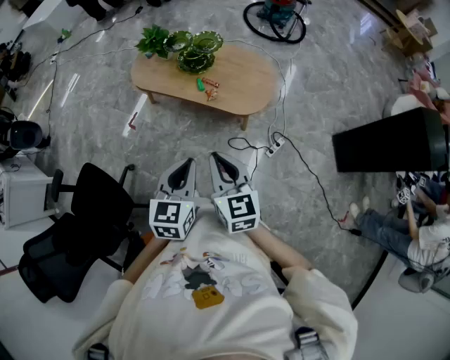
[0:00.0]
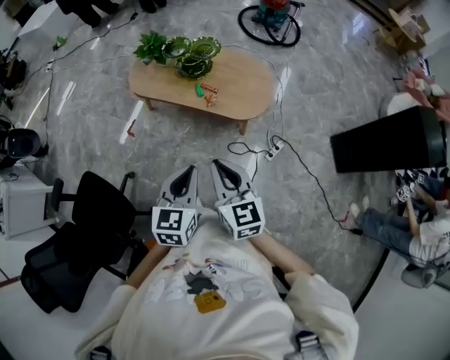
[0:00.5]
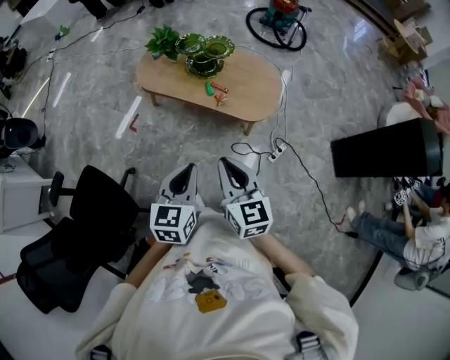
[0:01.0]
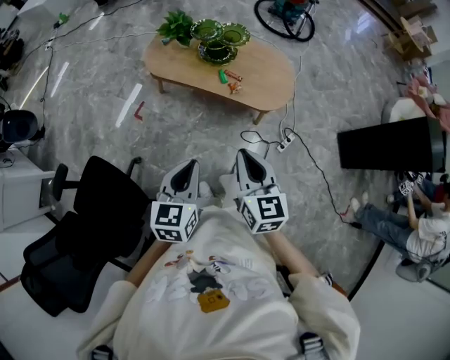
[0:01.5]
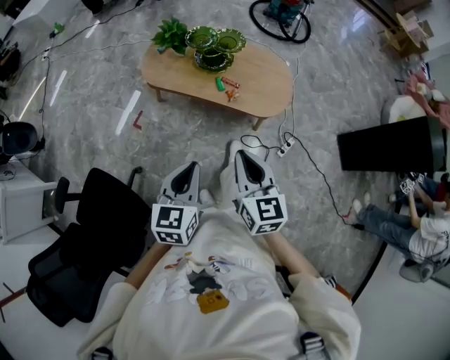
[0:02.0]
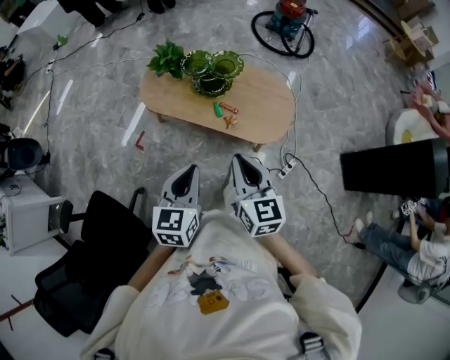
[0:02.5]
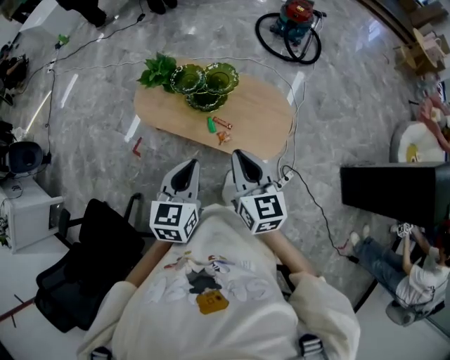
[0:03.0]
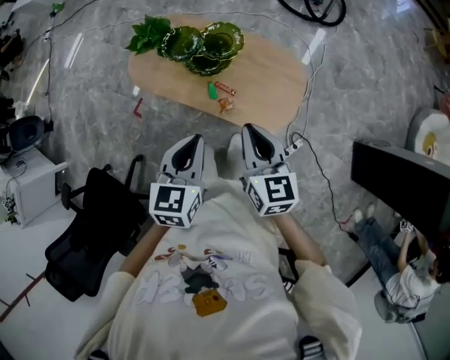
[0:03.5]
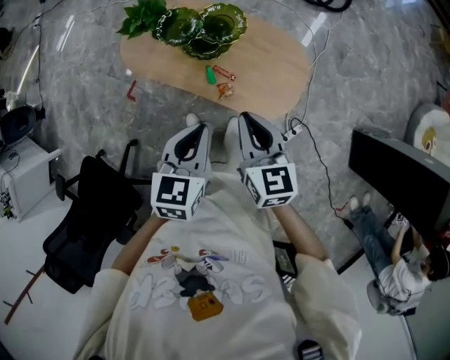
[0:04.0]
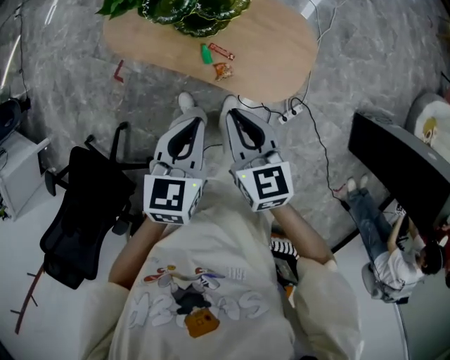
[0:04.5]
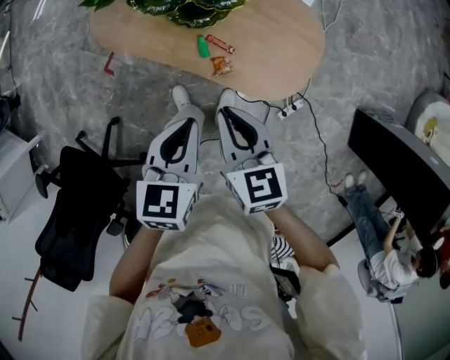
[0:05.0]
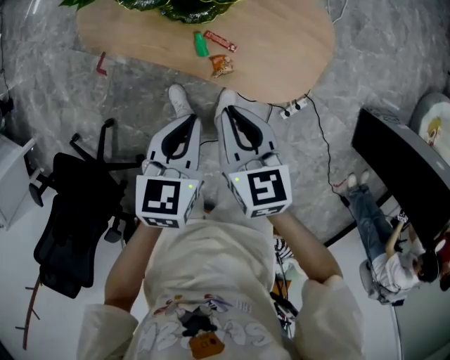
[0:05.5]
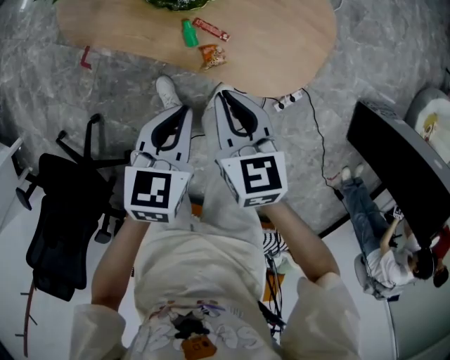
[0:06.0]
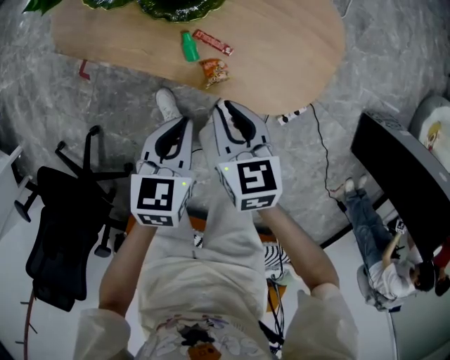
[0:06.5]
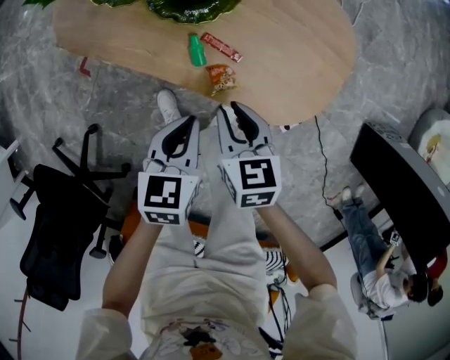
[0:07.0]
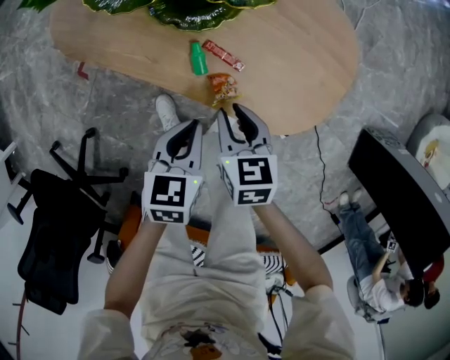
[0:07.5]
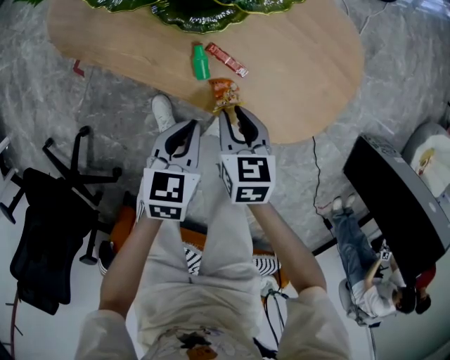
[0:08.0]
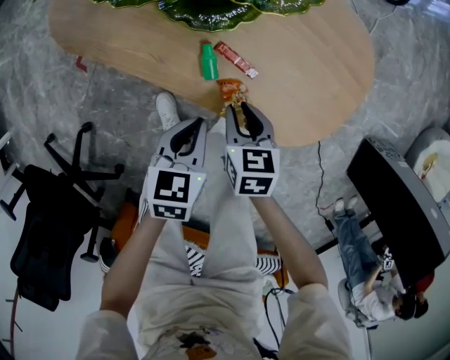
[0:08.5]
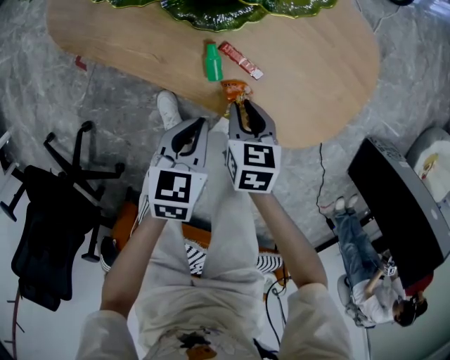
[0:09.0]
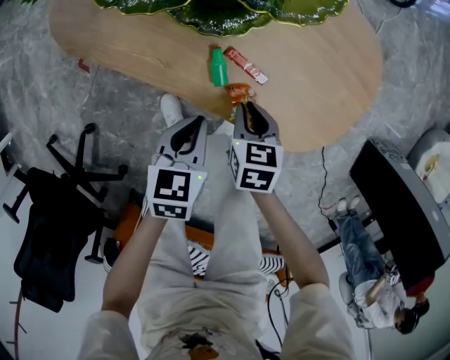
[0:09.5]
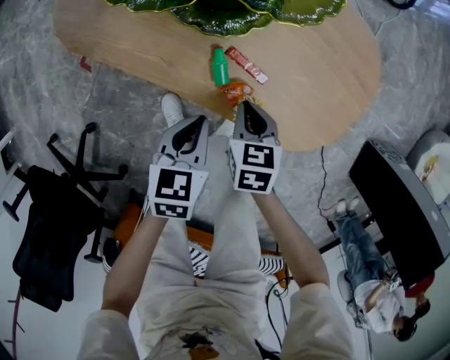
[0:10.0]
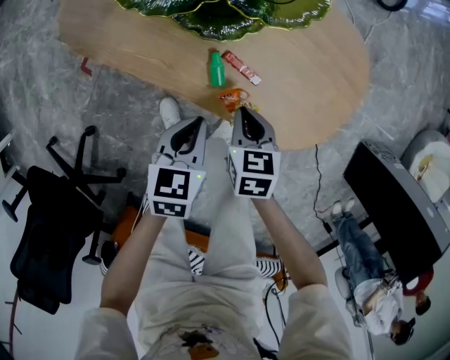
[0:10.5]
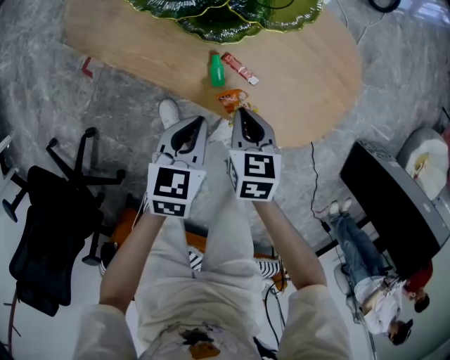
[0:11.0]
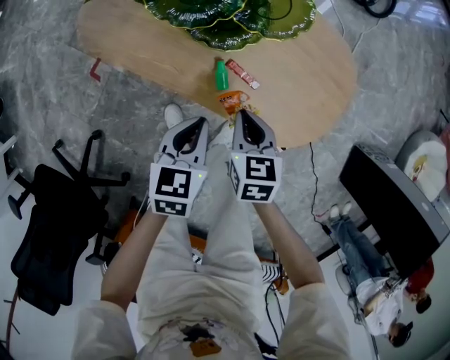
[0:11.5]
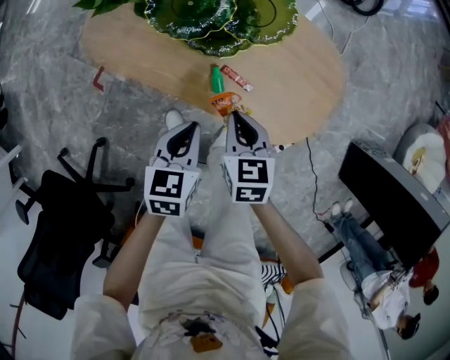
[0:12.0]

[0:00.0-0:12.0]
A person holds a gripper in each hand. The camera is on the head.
0:00.0 to 0:02.0: The grippers both shift to the left by approximately 15 cm.
0:02.0 to 0:04.0: The grippers both shift forward and to the right by some 40 cm.
0:04.0 to 0:06.0: Both grippers move downward, roughly 25 cm.
0:06.0 to 0:08.0: Both grippers travel together downward, about 20 cm.
0:08.0 to 0:10.0: The right gripper ends up about 5 cm from where it was.
0:10.0 to 0:12.0: Both grippers move upward, about 15 cm.

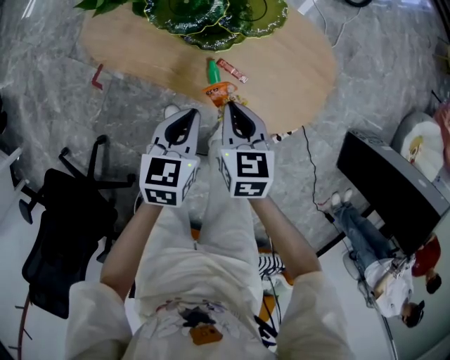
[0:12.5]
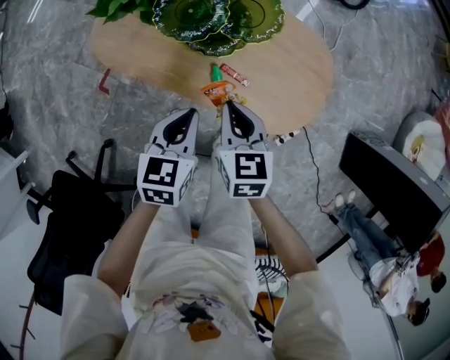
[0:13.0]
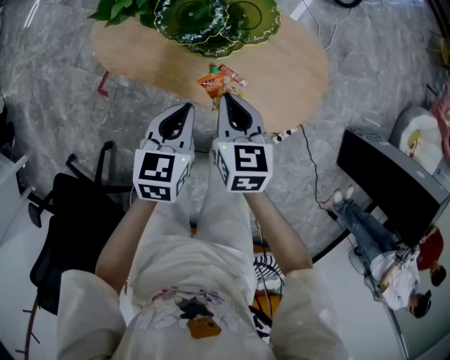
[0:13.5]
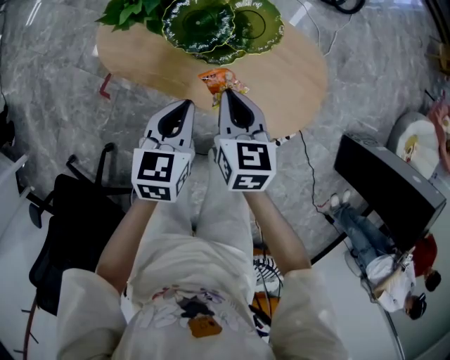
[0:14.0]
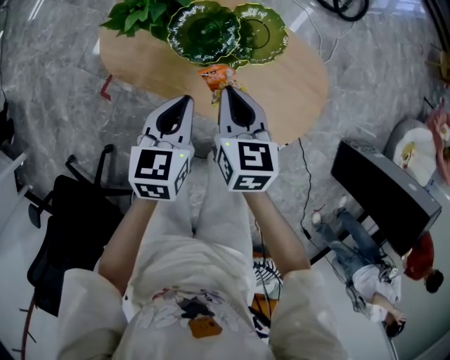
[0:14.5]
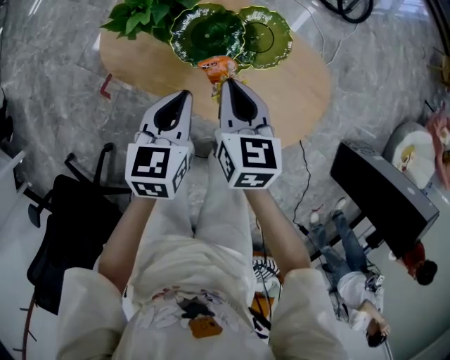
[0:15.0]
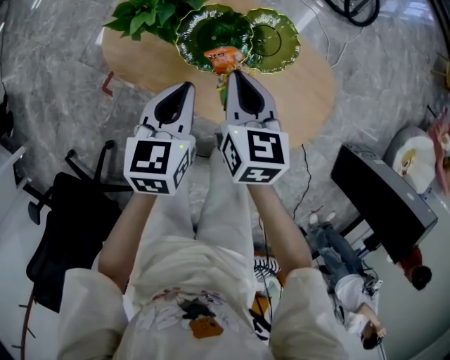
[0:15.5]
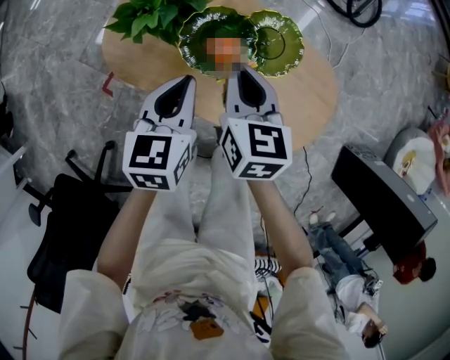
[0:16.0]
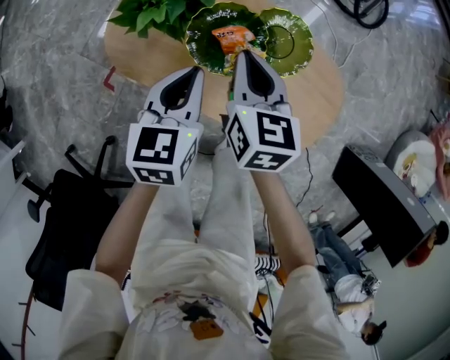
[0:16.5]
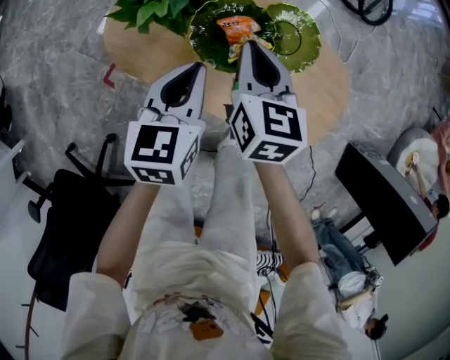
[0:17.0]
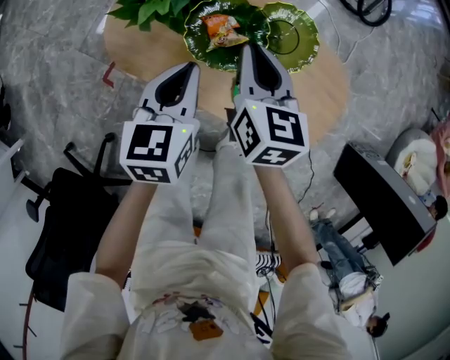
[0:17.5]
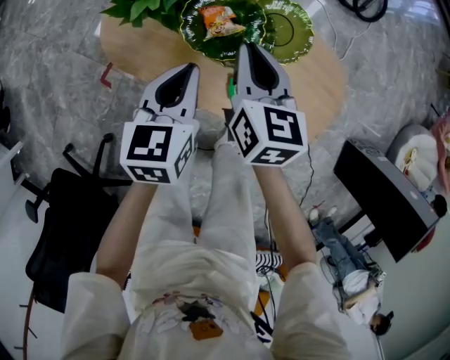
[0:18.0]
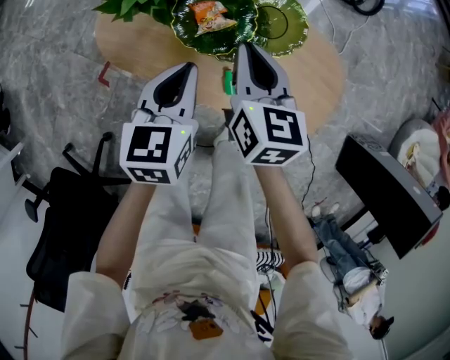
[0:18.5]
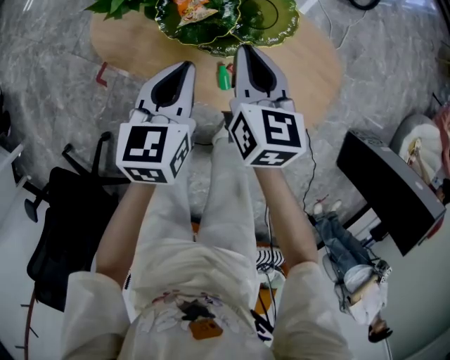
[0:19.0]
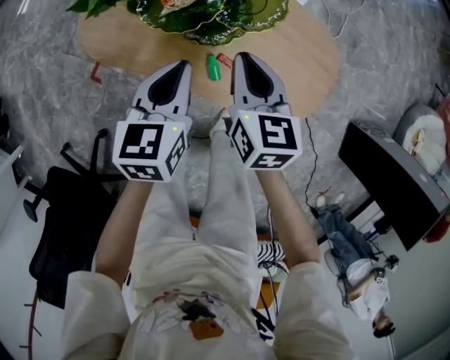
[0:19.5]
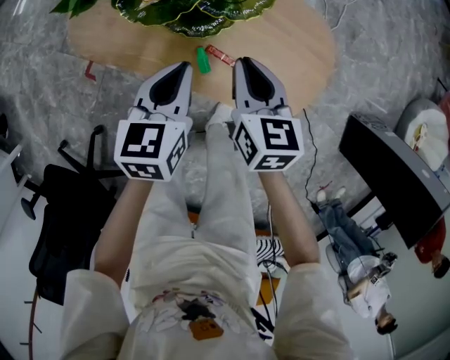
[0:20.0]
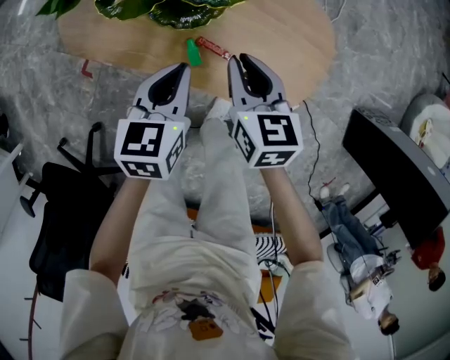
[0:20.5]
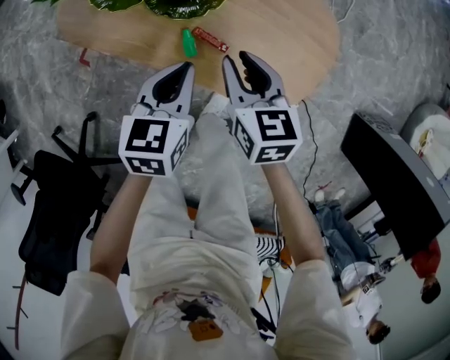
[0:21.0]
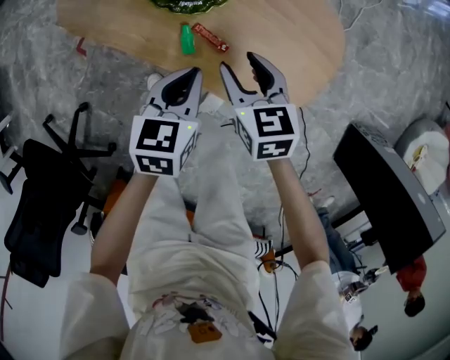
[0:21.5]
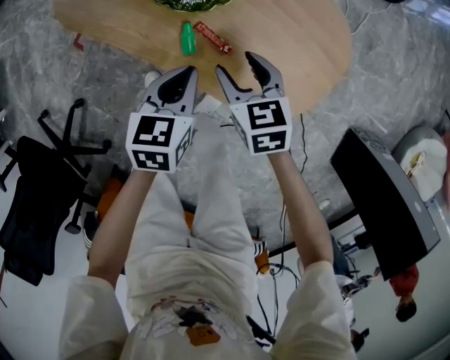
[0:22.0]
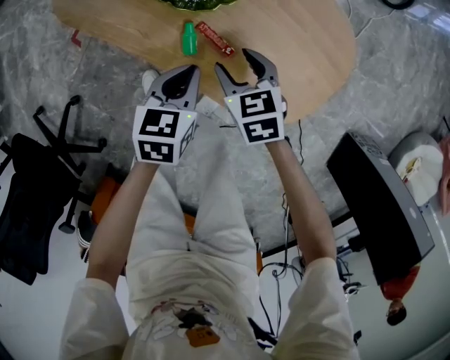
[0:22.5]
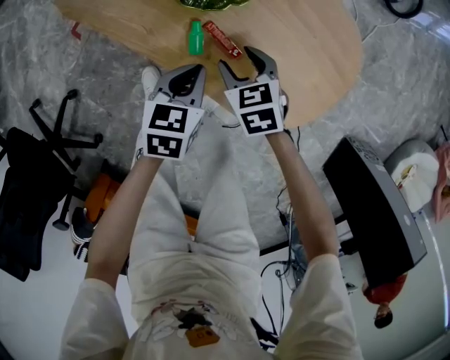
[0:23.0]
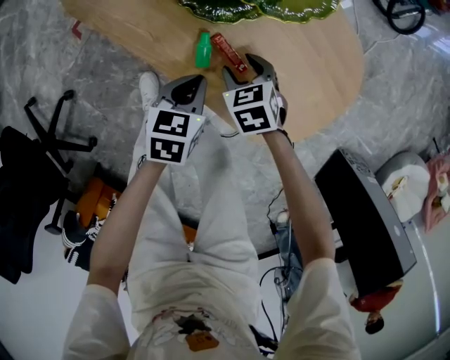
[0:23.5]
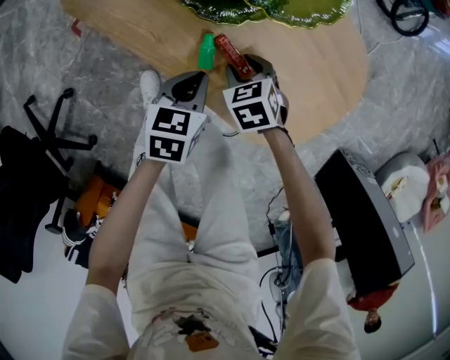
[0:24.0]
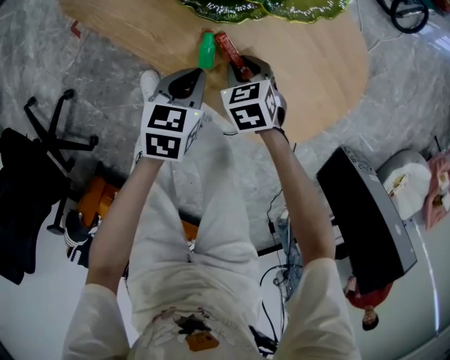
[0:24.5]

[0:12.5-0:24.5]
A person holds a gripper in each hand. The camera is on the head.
0:12.5 to 0:14.5: The left gripper shifts approximately 15 cm forward, upward and to the left. The right gripper moves upward, forward and to the left, approximately 15 cm.
0:14.5 to 0:16.5: The two grippers go about 10 cm forward.
0:16.5 to 0:18.5: The grippers stay close to where they were, moving slightly.
0:18.5 to 0:20.5: The right gripper shifts approximately 20 cm to the right, backward and downward; the left gripper goes some 15 cm to the right and backward.
0:20.5 to 0:22.5: Both grippers travel together downward, some 15 cm. The right gripper turns by some 30 degrees, and opens up.
0:22.5 to 0:24.5: The right gripper shifts approximately 10 cm downward, and closes, while the left gripper goes approximately 5 cm downward.

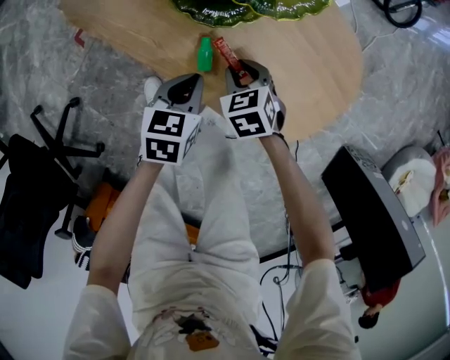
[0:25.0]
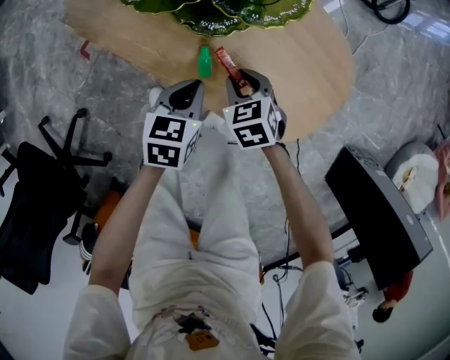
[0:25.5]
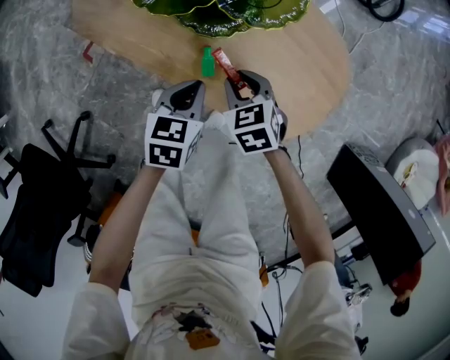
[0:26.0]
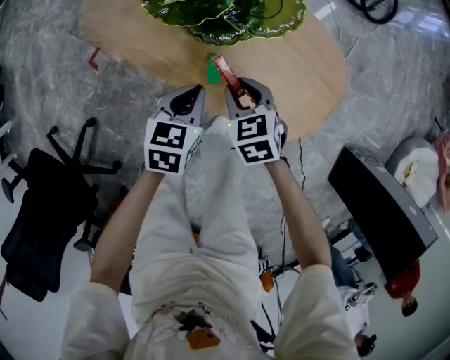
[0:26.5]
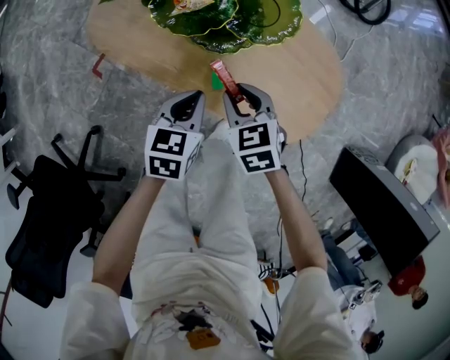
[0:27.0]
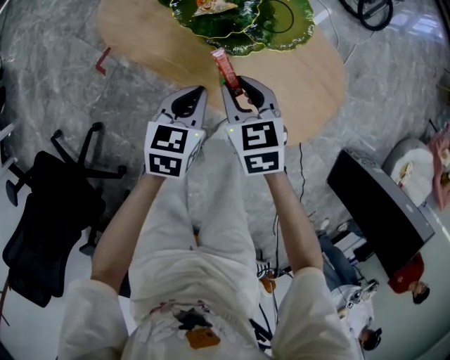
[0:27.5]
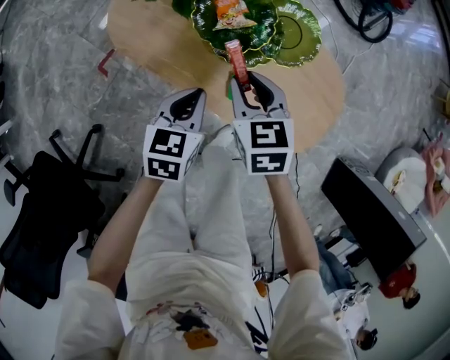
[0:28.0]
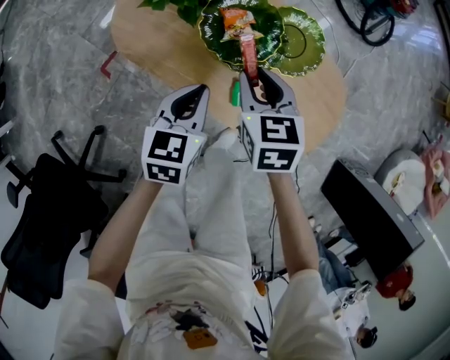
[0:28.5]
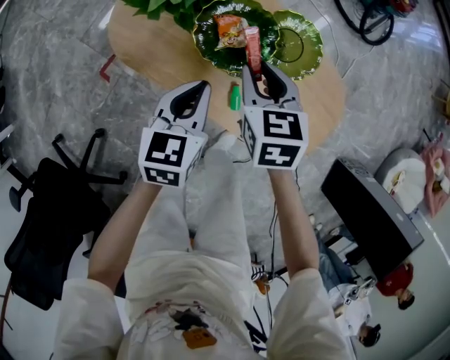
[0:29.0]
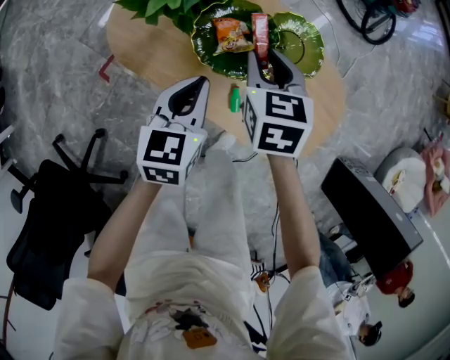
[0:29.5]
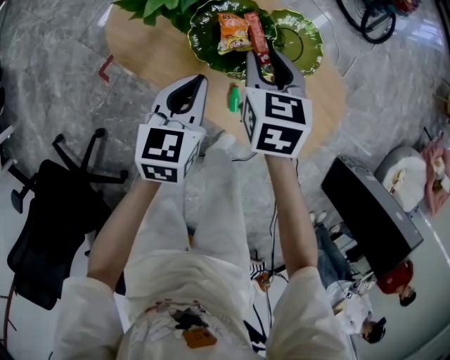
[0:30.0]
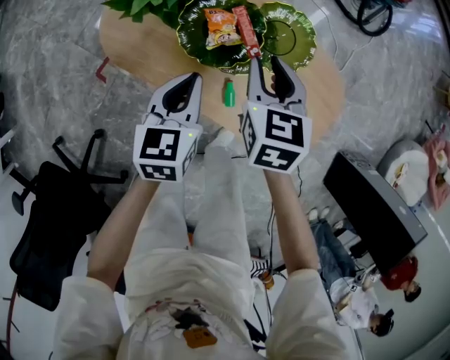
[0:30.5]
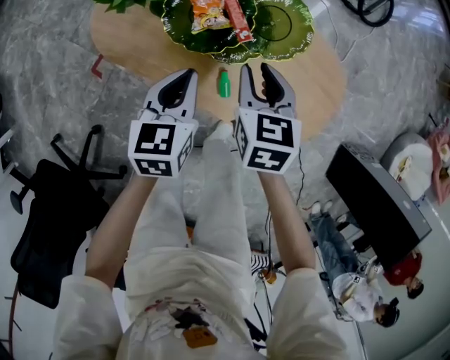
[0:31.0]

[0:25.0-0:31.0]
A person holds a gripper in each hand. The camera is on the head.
0:25.0 to 0:27.0: The two grippers go approximately 15 cm upward.
0:27.0 to 0:29.0: The right gripper travels forward, upward and to the left by approximately 20 cm; the left gripper travels forward, to the left and upward by about 15 cm.
0:29.0 to 0:31.0: The right gripper travels to the right by about 5 cm.
